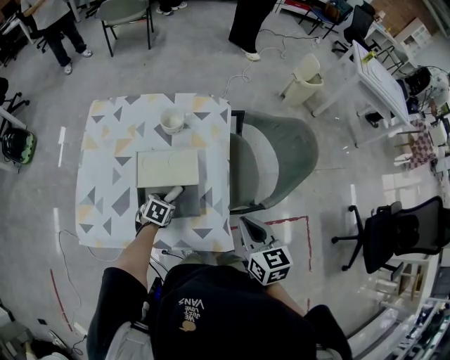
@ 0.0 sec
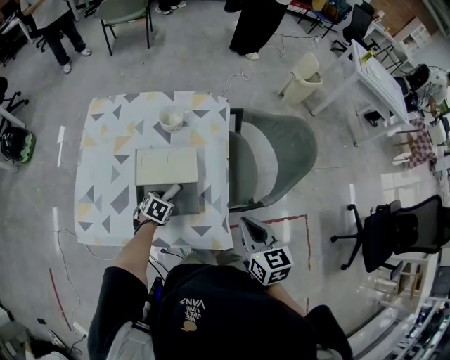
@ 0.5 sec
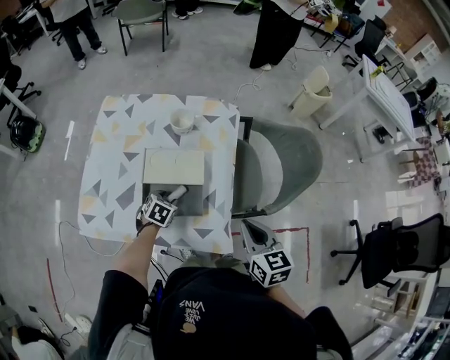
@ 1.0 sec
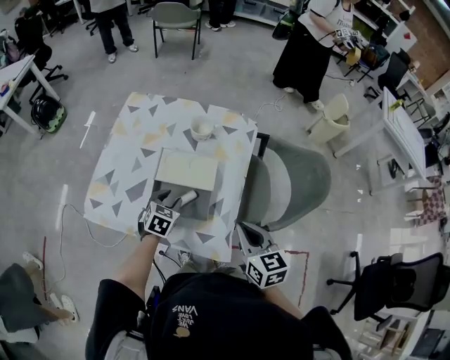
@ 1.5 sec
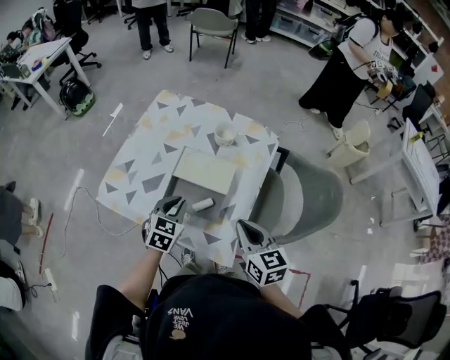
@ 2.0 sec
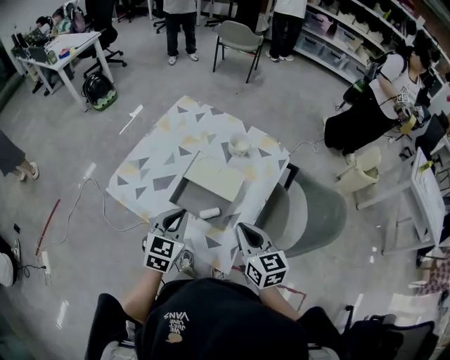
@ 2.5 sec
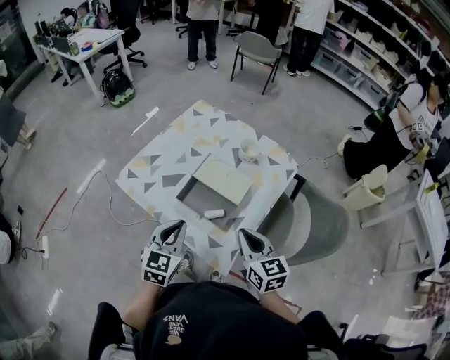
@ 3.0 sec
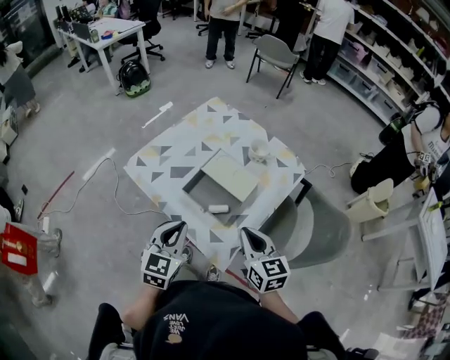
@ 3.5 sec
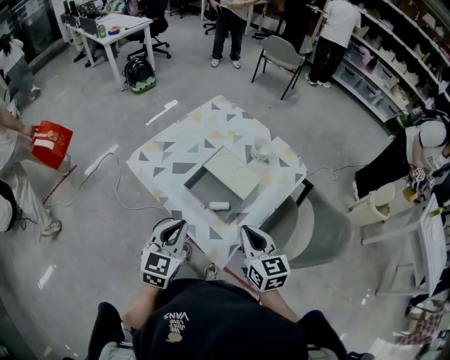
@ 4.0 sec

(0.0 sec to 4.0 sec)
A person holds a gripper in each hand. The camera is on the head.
0.0 sec - 2.0 sec: The left gripper shifts some 20 cm upward, and turns by about 40 degrees. Meanwhile the right gripper changes place by some 5 cm, and changes its angle by approximately 30 degrees.
2.0 sec - 4.0 sec: The right gripper swivels roughly 20 degrees. Meanwhile the left gripper is displaced backward and upward by about 20 cm, and swivels about 30 degrees.

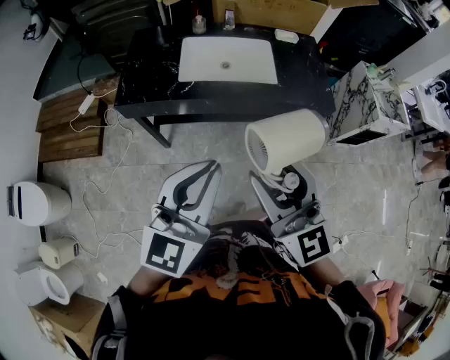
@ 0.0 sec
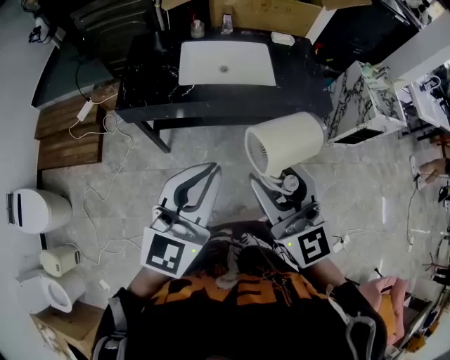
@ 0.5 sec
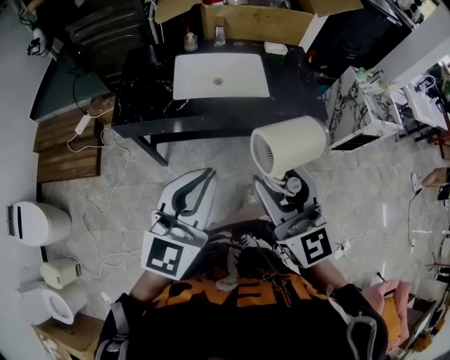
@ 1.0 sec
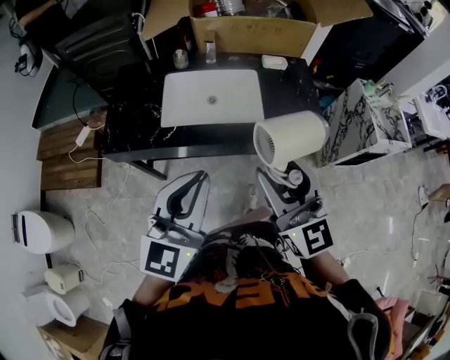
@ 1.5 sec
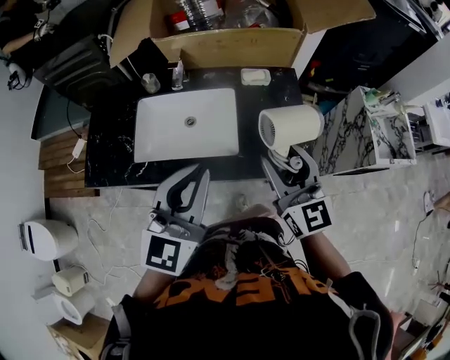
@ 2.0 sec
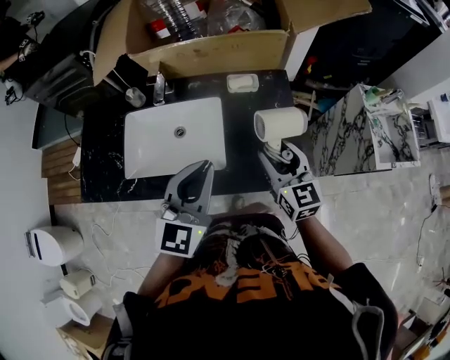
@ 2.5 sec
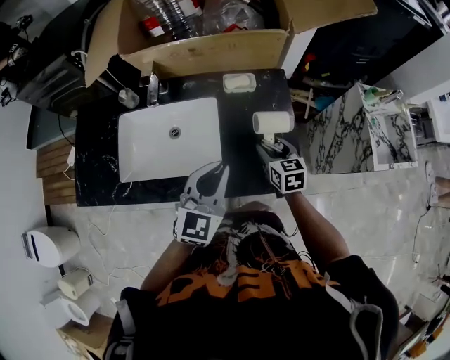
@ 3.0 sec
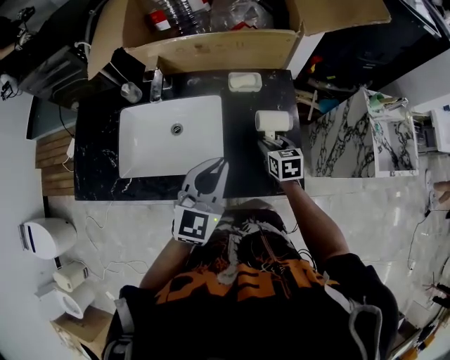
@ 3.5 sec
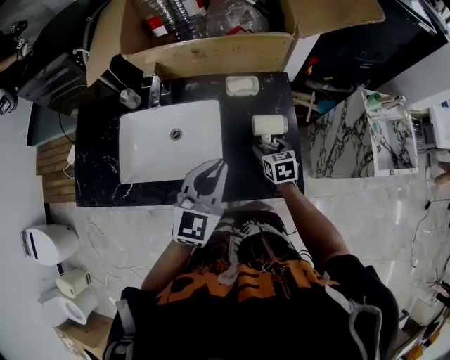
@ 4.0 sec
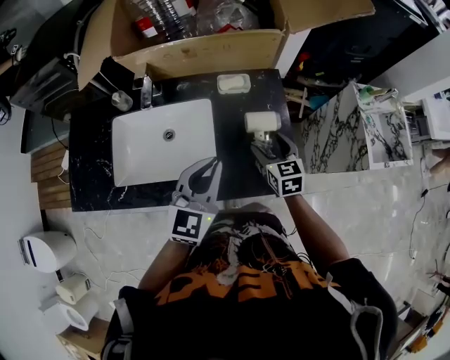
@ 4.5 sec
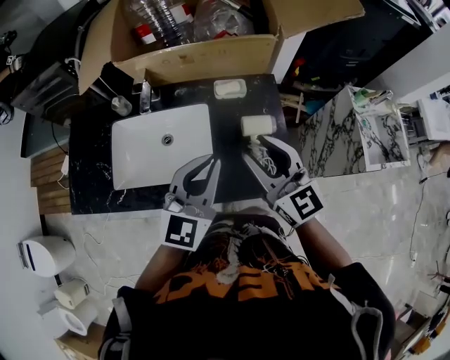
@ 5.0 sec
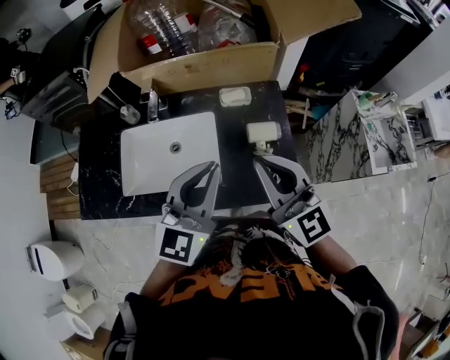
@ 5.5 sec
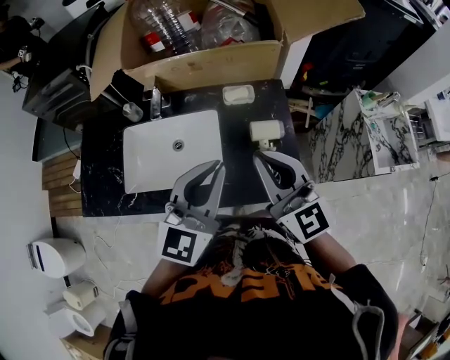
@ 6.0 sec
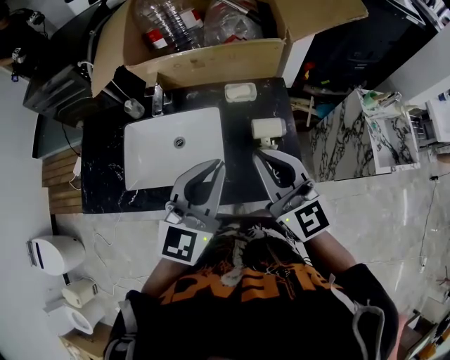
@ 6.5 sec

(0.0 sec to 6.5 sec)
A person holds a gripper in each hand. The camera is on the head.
0.0 sec - 2.0 sec: Both grippers move forward and to the right, about 40 cm.
2.0 sec - 4.5 sec: The right gripper shifts about 30 cm downward and forward, and angles its fingers downward, by some 30 degrees; the left gripper travels forward, downward and to the right by about 20 cm.
4.5 sec - 6.5 sec: The left gripper shifts some 10 cm upward; the right gripper goes about 25 cm upward, tips its fingers upward by approximately 40 degrees, and closes.

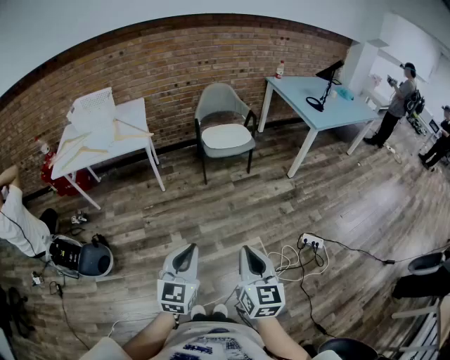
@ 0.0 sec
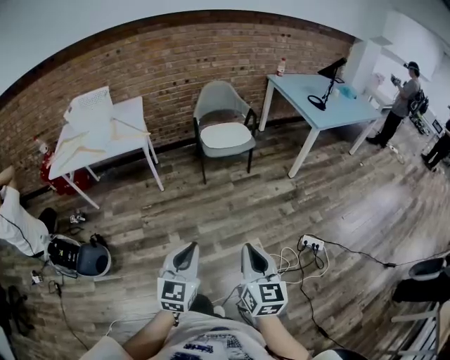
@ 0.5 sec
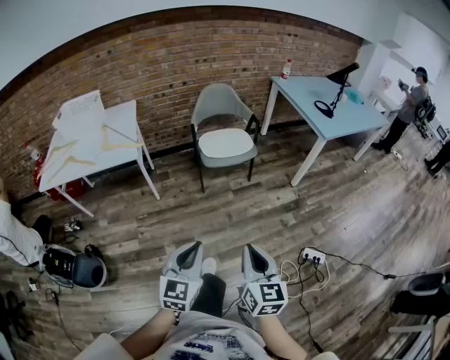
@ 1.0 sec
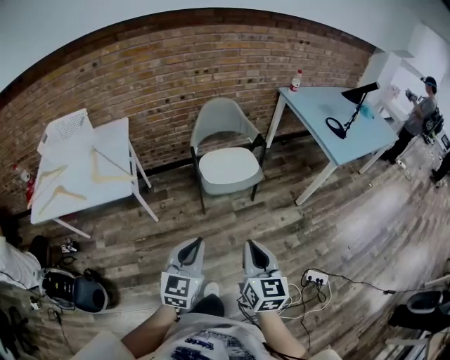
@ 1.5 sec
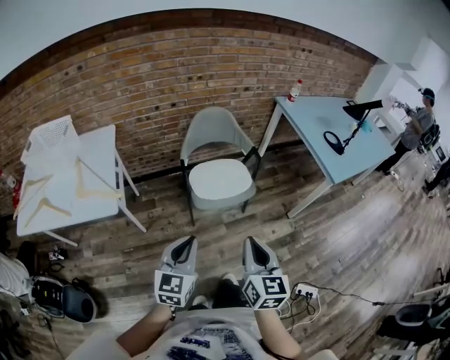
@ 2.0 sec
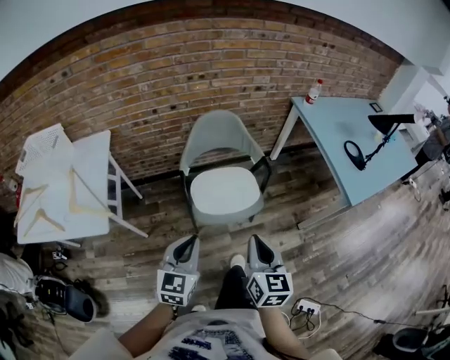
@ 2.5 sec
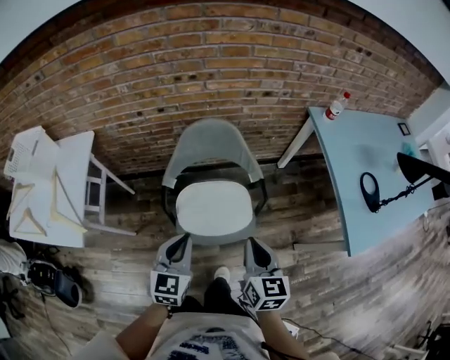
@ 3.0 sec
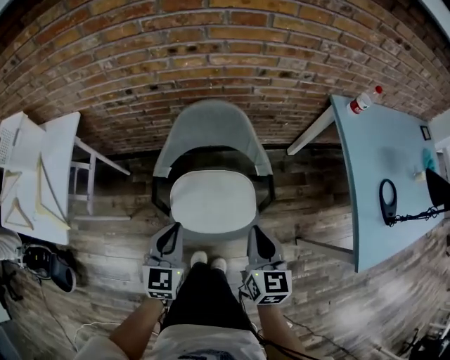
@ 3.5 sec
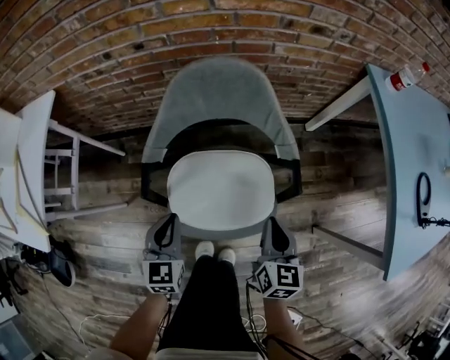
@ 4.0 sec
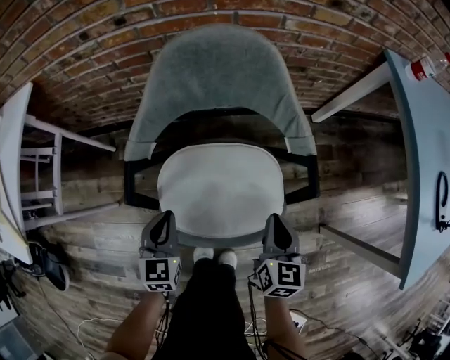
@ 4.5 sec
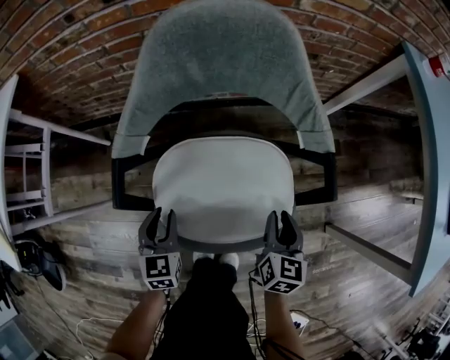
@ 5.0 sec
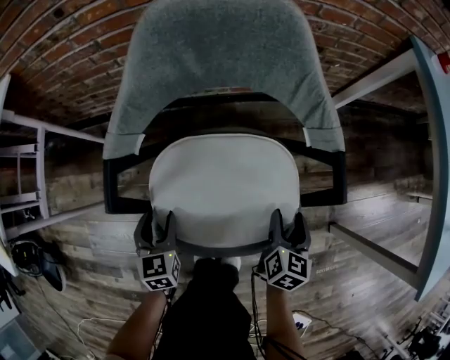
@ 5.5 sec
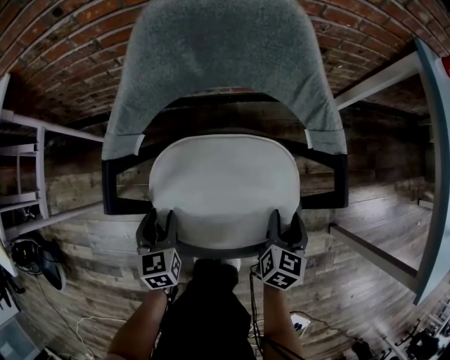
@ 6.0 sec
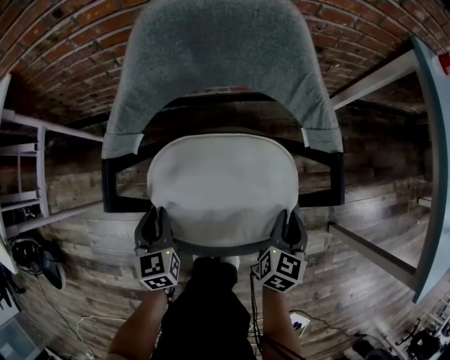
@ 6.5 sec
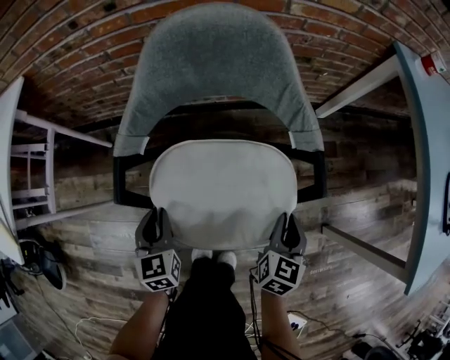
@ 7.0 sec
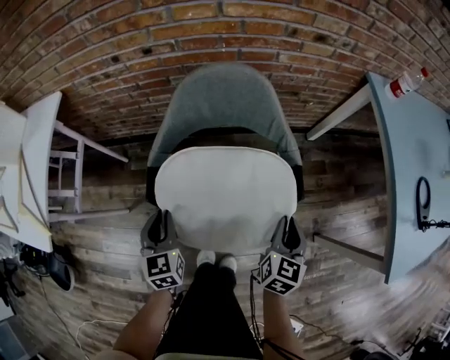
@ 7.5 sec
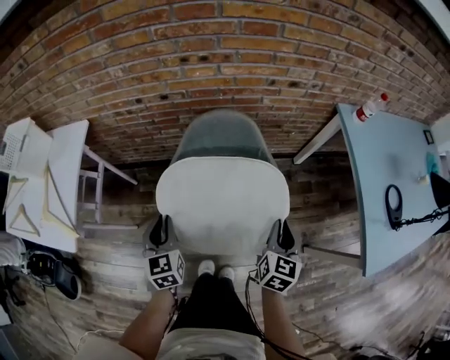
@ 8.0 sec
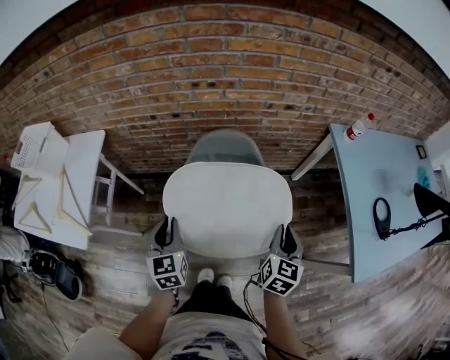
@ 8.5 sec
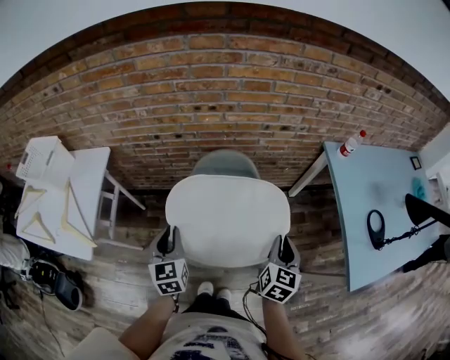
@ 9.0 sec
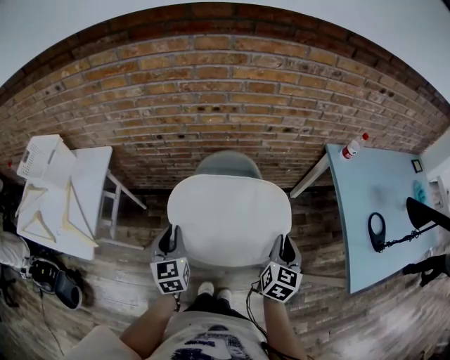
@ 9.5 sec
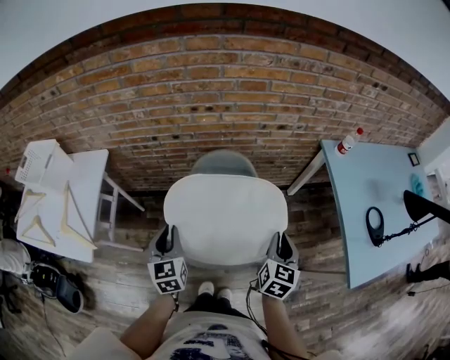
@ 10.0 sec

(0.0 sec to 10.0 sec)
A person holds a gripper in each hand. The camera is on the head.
0.0 sec - 2.0 sec: Both grippers are carried forward, approximately 50 cm.
2.0 sec - 4.0 sec: Both grippers are carried forward, approximately 50 cm. The grippers both shift downward by some 35 cm. The left gripper changes its angle by about 30 degrees.
4.0 sec - 6.0 sec: Both grippers move downward, approximately 25 cm. The left gripper opens. Meanwhile the right gripper opens.
6.0 sec - 8.0 sec: Both grippers move upward, some 40 cm. The right gripper closes its fingers. Meanwhile the left gripper closes its fingers.
8.0 sec - 10.0 sec: The two grippers go some 10 cm upward.

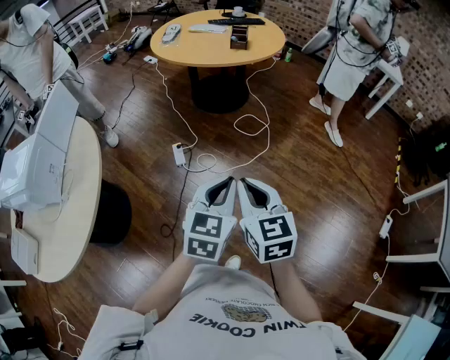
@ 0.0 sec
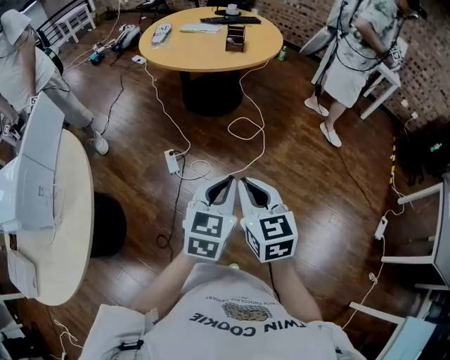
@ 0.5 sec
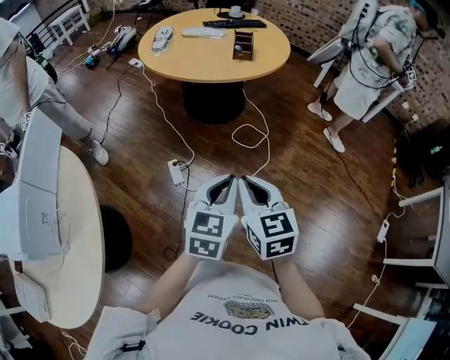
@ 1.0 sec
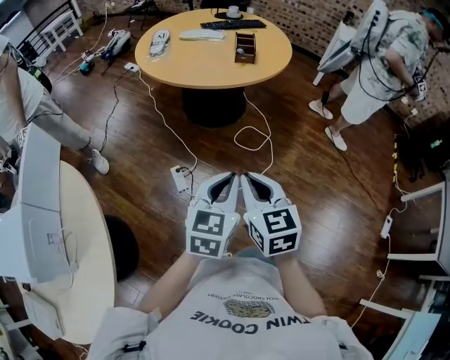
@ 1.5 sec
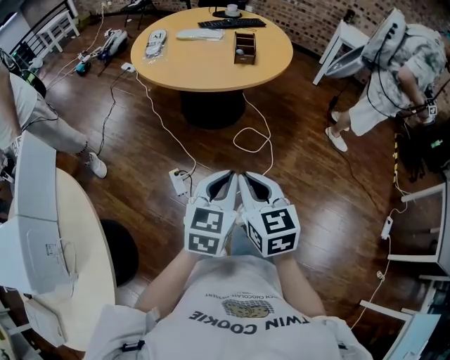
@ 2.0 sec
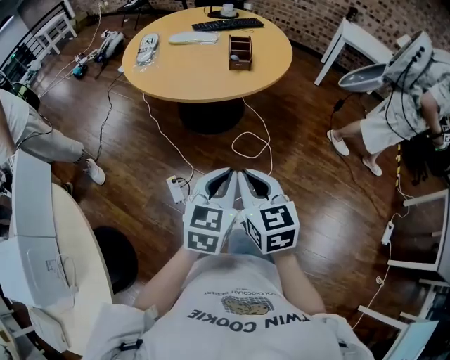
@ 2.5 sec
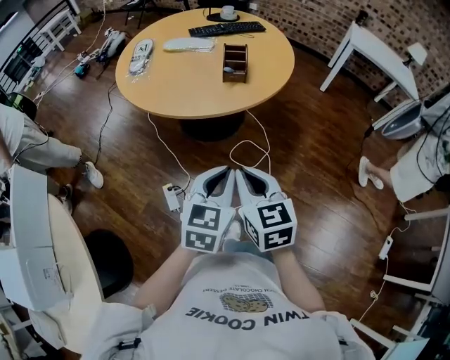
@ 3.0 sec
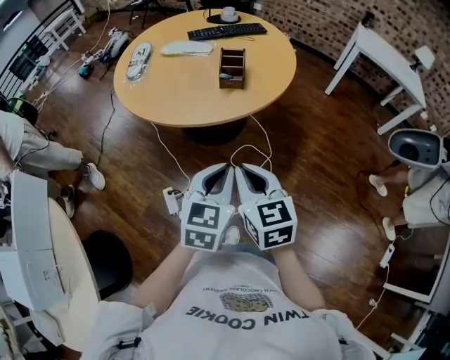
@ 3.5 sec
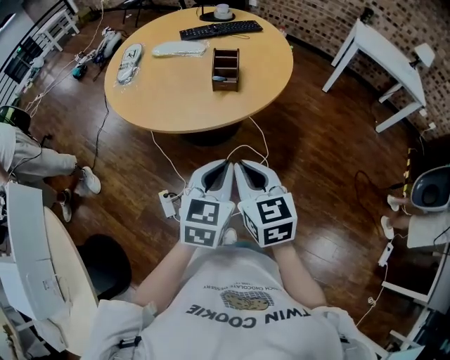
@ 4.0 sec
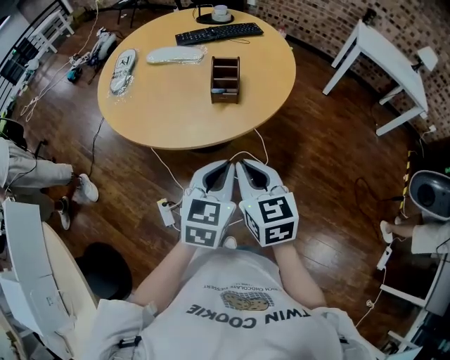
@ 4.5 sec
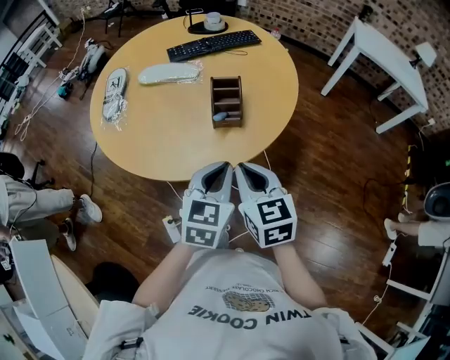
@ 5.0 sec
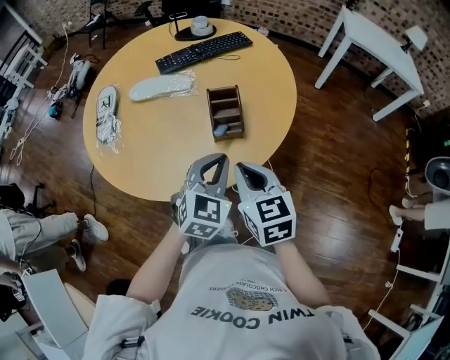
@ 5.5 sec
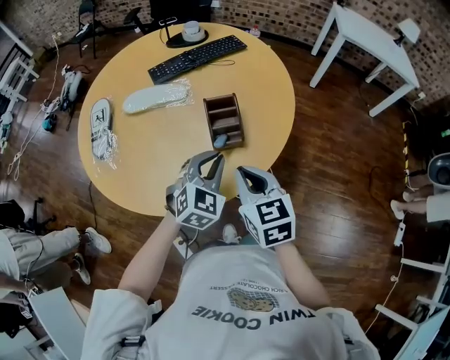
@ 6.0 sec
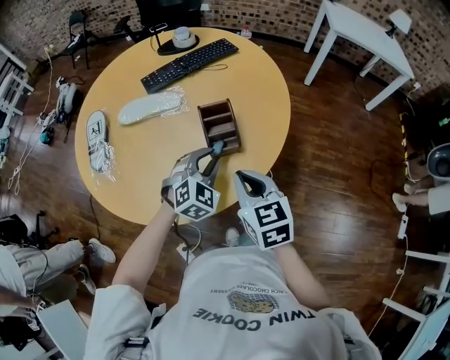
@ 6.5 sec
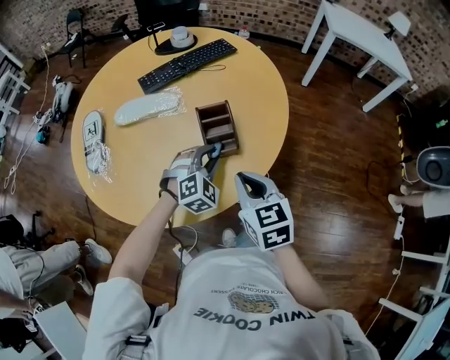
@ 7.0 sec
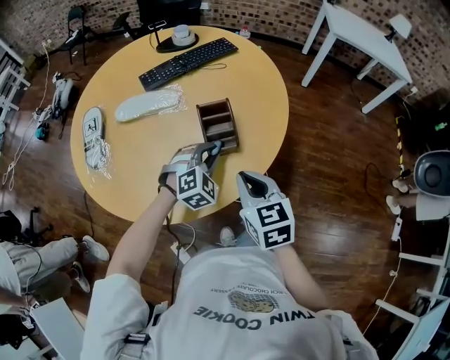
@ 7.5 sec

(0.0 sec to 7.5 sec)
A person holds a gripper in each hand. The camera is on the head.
0.0 sec - 2.0 sec: Both grippers move forward and to the left, about 30 cm.
2.0 sec - 4.0 sec: The grippers both shift forward and to the right by about 30 cm.
4.0 sec - 5.5 sec: Both grippers move forward, some 25 cm. The left gripper swivels some 20 degrees.
5.5 sec - 7.5 sec: The right gripper changes place by roughly 5 cm; the left gripper shifts some 15 cm downward and forward, and turns by approximately 40 degrees.
